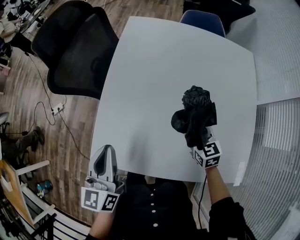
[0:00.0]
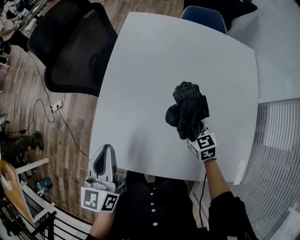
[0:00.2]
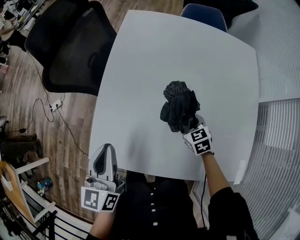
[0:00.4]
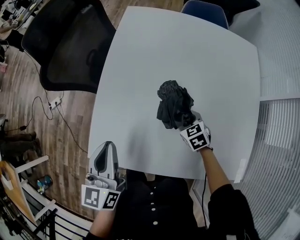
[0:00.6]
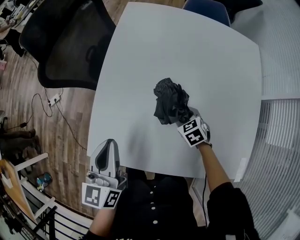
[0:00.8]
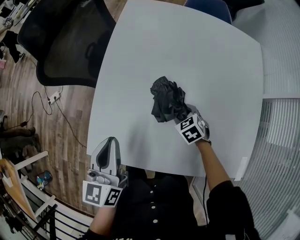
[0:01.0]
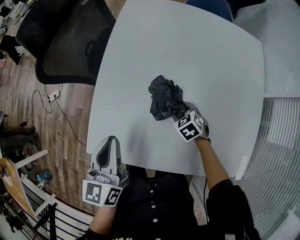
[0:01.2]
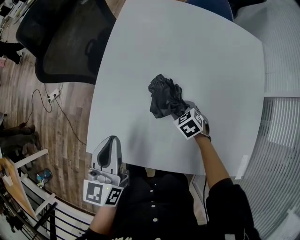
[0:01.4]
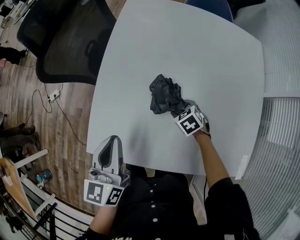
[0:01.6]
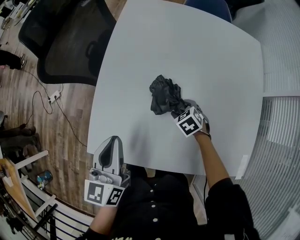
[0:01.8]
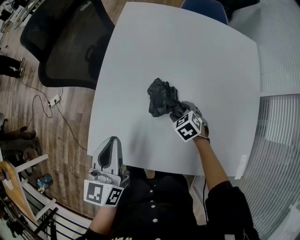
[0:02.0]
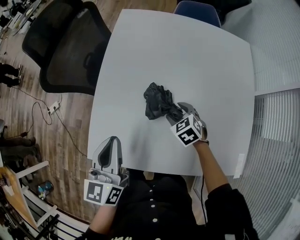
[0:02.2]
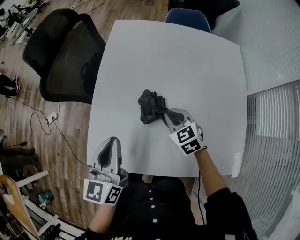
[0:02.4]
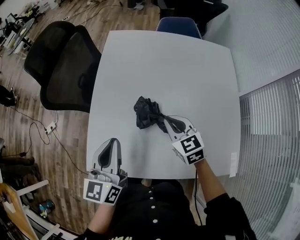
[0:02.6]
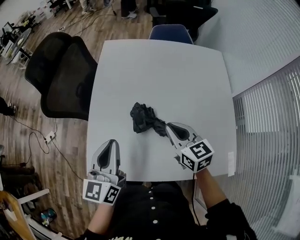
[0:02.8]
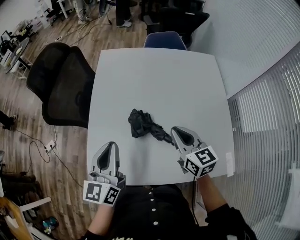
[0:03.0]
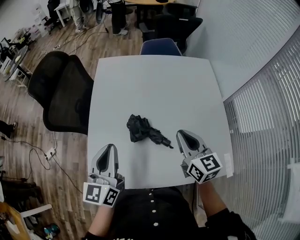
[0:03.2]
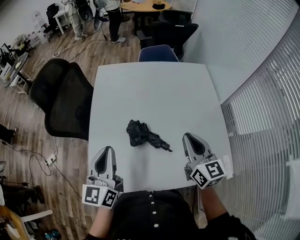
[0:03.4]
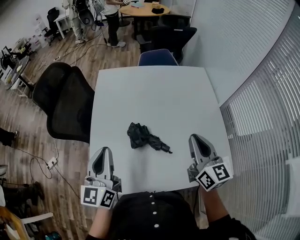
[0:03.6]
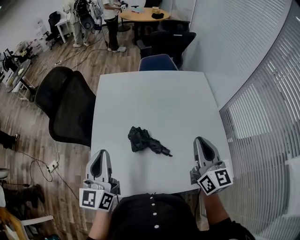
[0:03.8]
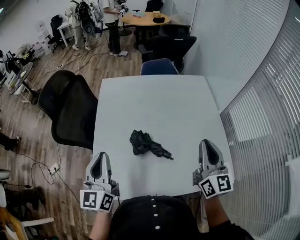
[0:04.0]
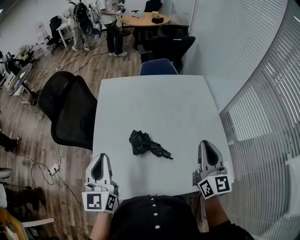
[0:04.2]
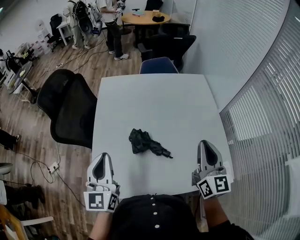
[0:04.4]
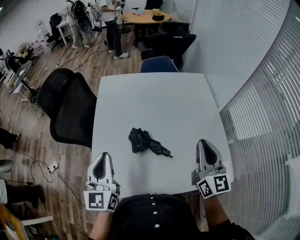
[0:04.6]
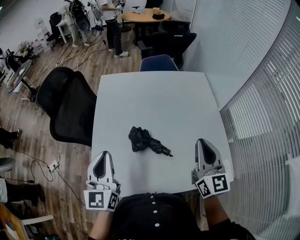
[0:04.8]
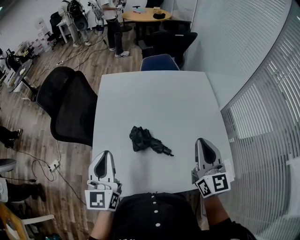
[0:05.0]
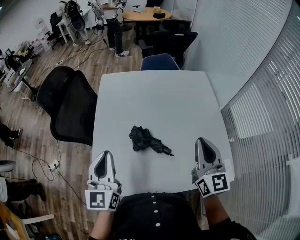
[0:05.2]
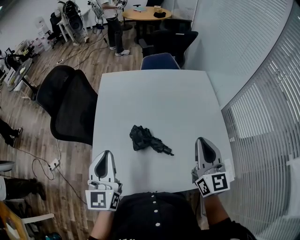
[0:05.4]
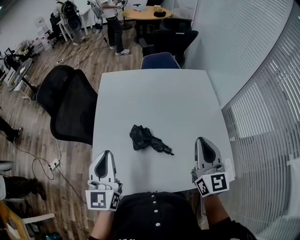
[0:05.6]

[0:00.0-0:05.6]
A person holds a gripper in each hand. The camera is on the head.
0:00.0 to 0:01.4: The right gripper is displaced downward by some 15 cm, and tips its fingers downward by approximately 30 degrees.
0:01.4 to 0:02.8: The left gripper is displaced upward and to the right by some 10 cm. The right gripper travels upward by about 25 cm, tips its fingers upward by approximately 40 degrees, and closes its fingers.
0:02.8 to 0:04.2: The right gripper shifts approximately 20 cm upward, to the right and backward, and swivels roughly 40 degrees; the left gripper goes roughly 5 cm upward.
0:04.2 to 0:05.6: The grippers make only small movements.
